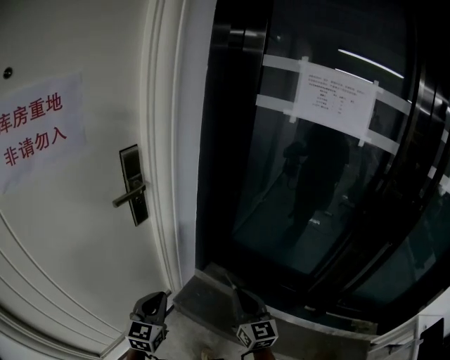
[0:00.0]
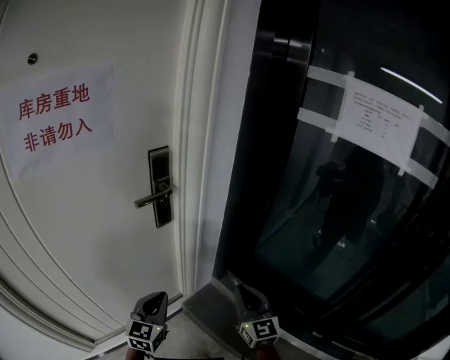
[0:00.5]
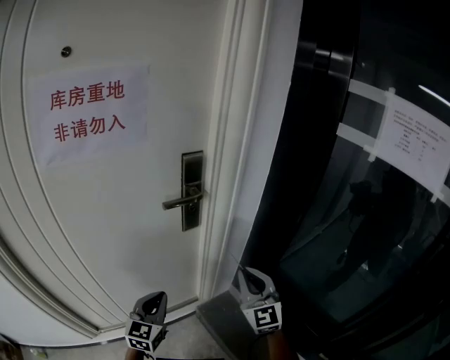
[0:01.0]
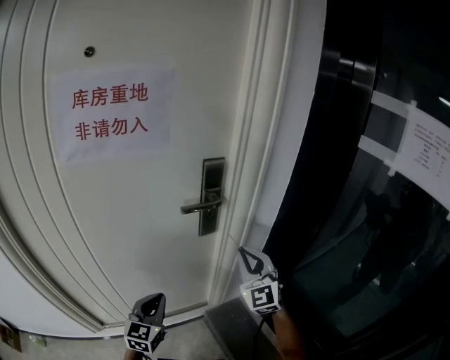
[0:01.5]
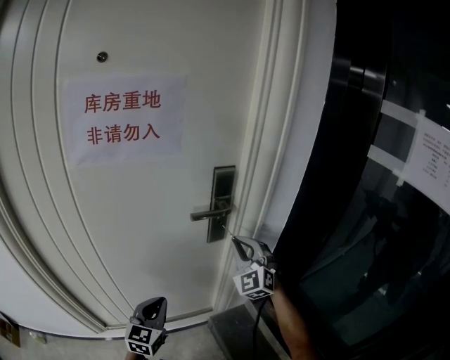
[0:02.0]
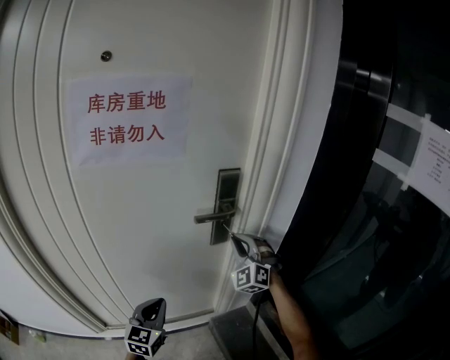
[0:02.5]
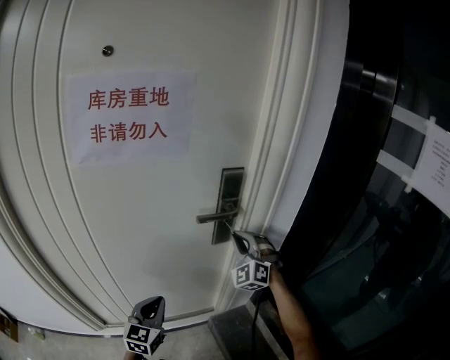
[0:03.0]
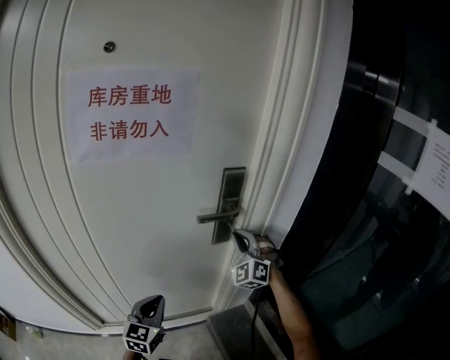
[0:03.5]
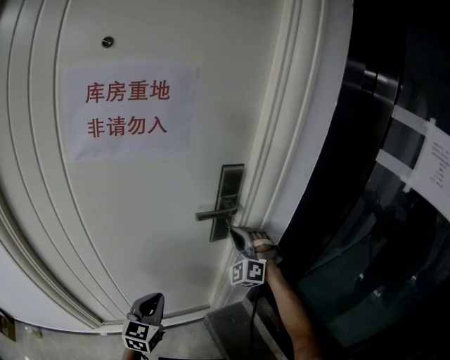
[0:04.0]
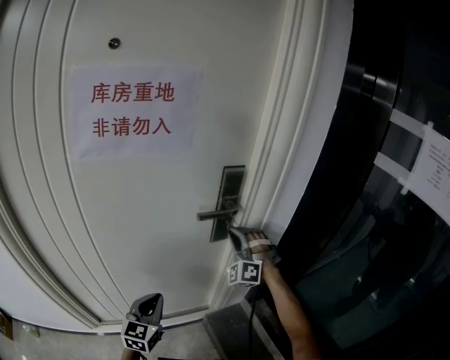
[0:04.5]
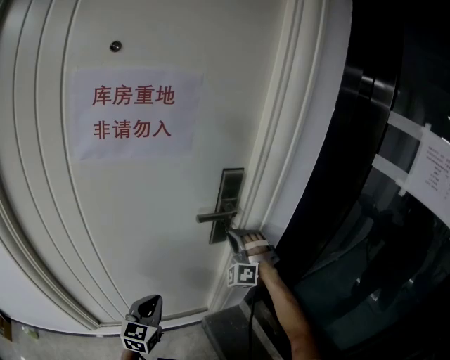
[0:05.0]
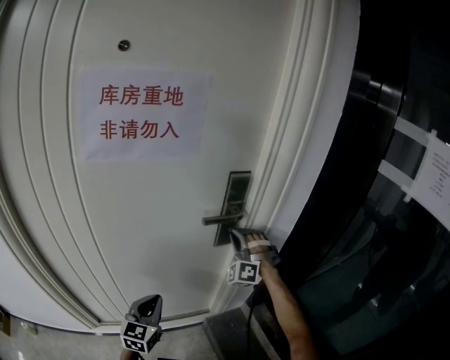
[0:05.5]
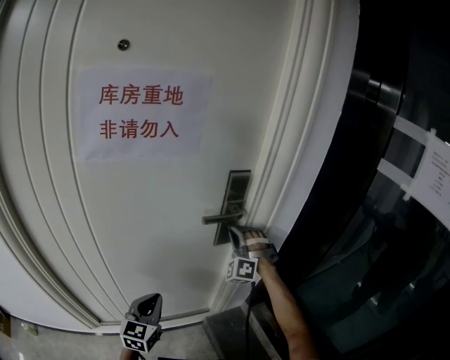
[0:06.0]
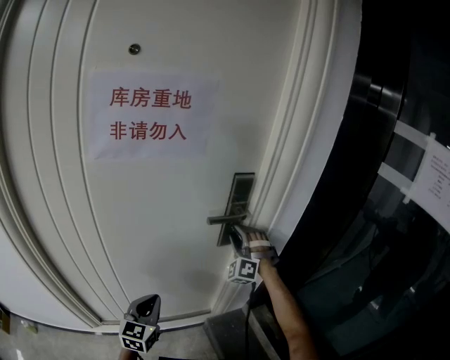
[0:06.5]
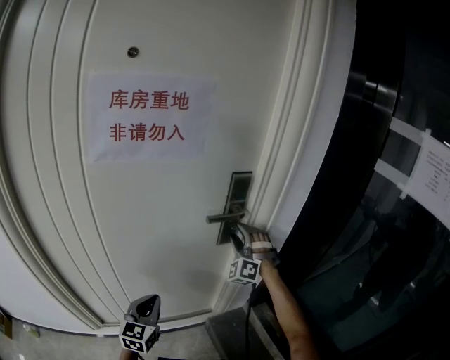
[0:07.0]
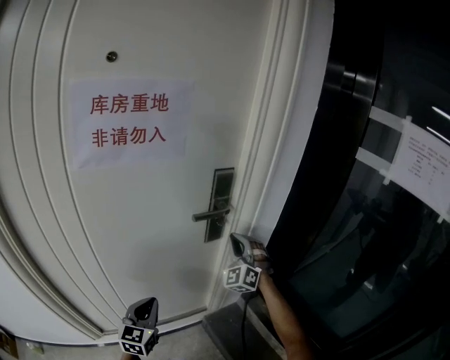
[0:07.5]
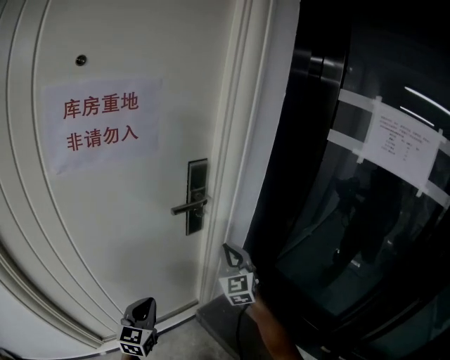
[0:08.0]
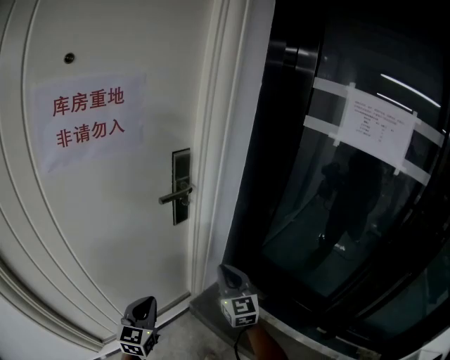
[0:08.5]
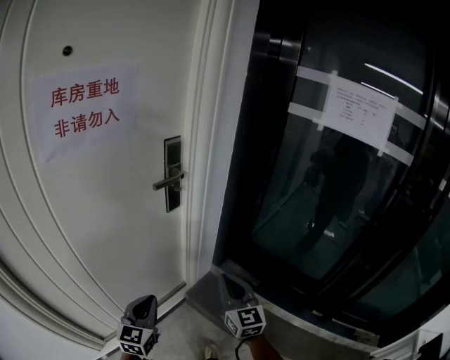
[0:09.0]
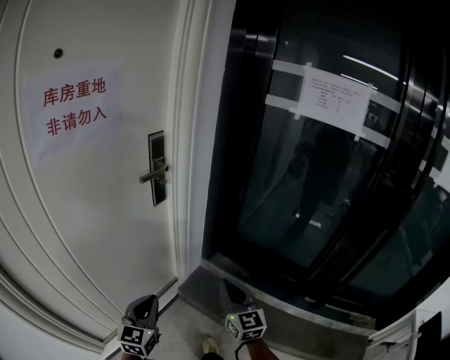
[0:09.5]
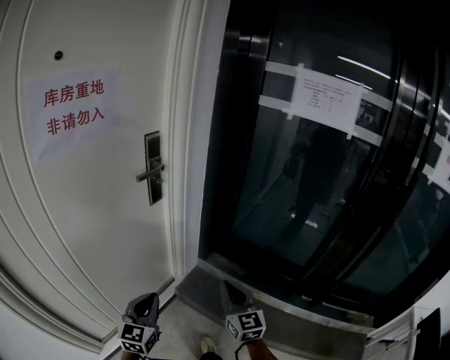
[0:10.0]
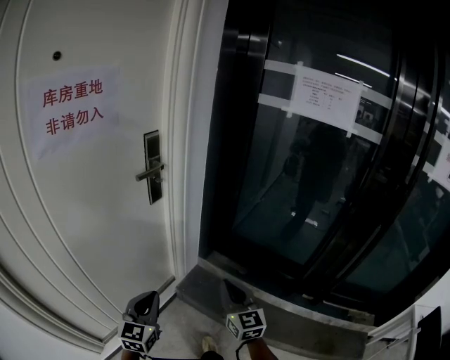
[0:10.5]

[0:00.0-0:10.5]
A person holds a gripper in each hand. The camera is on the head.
0:00.0 to 0:02.0: The right gripper ends up roughly 35 cm from where it was, and rotates approximately 60 degrees. Meanwhile the left gripper shifts by approximately 10 cm, and changes its angle by roughly 30 degrees.
0:02.0 to 0:04.0: The right gripper shifts approximately 5 cm forward, and changes its angle by some 30 degrees.
0:04.0 to 0:06.5: The right gripper opens up.
0:06.5 to 0:08.5: The right gripper shifts roughly 25 cm backward, rotates around the line of its fingers by approximately 80 degrees, clockwise from behind, and closes up. The left gripper ends up some 5 cm from where it was, and changes its angle by approximately 20 degrees.
0:08.5 to 0:10.5: The right gripper moves backward, roughly 20 cm. Meanwhile the left gripper is displaced backward by approximately 10 cm.

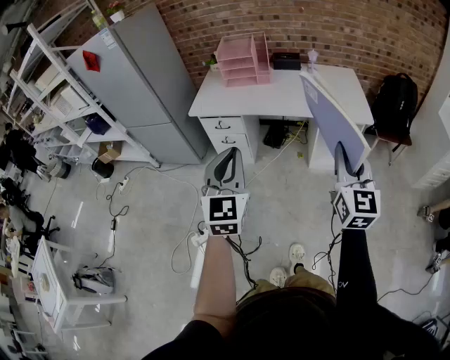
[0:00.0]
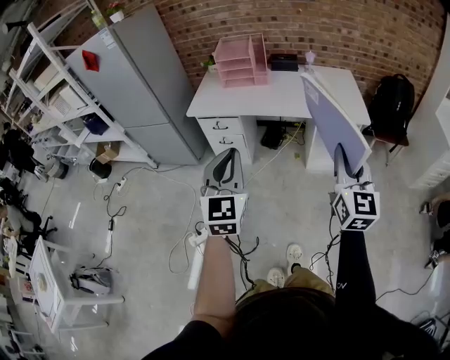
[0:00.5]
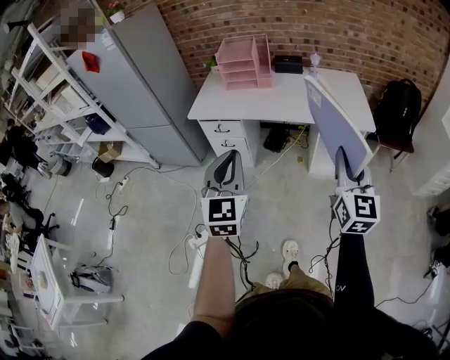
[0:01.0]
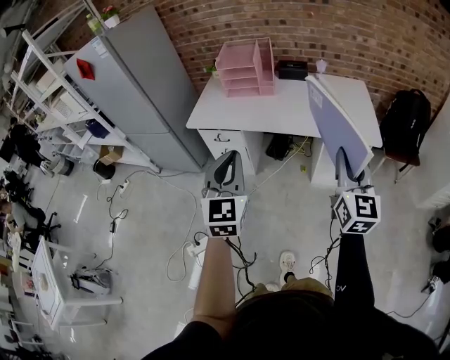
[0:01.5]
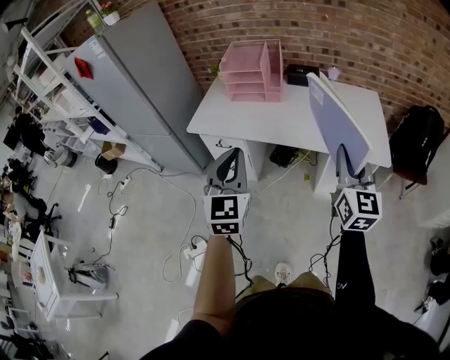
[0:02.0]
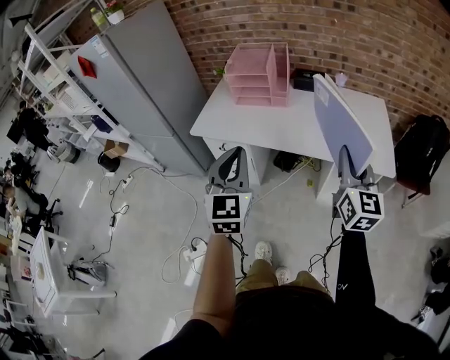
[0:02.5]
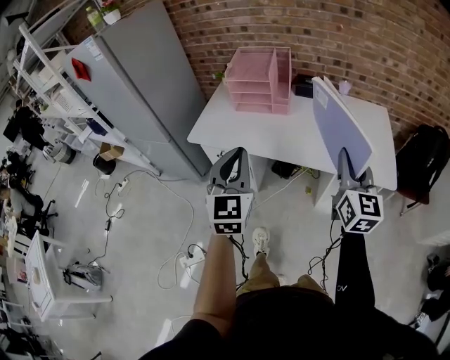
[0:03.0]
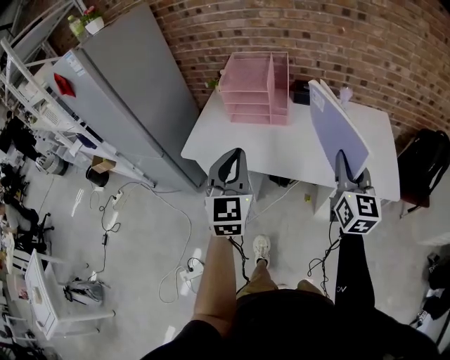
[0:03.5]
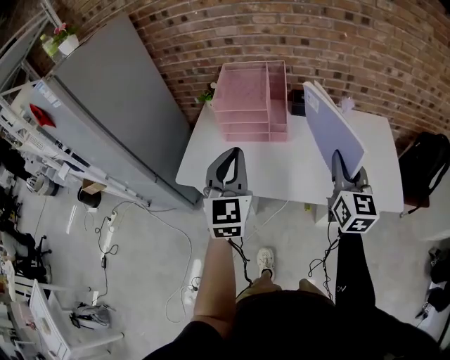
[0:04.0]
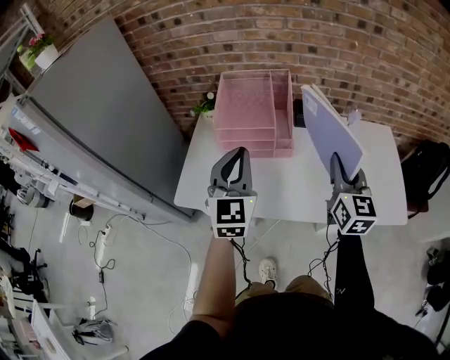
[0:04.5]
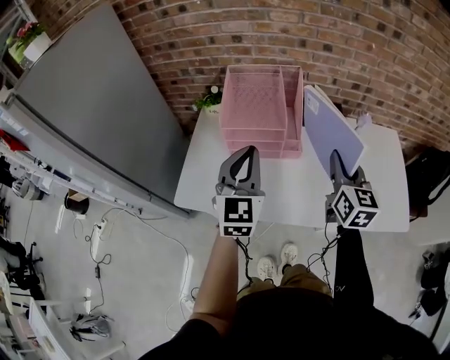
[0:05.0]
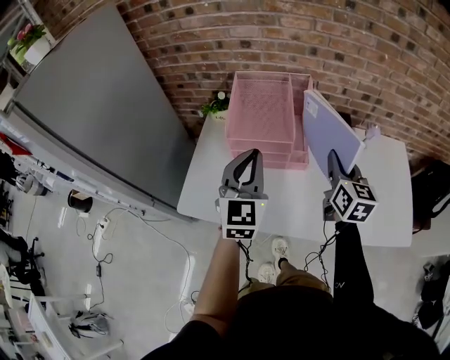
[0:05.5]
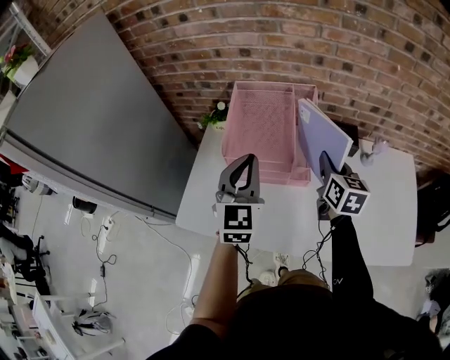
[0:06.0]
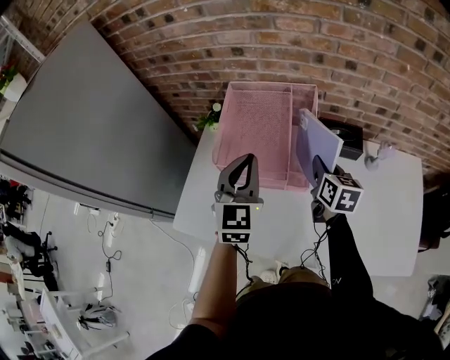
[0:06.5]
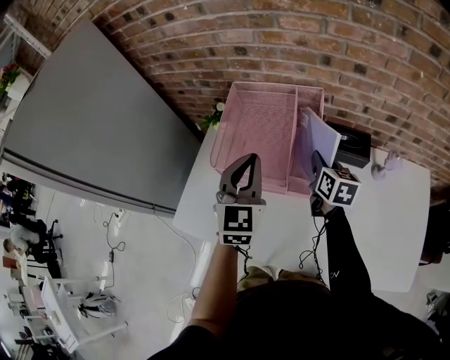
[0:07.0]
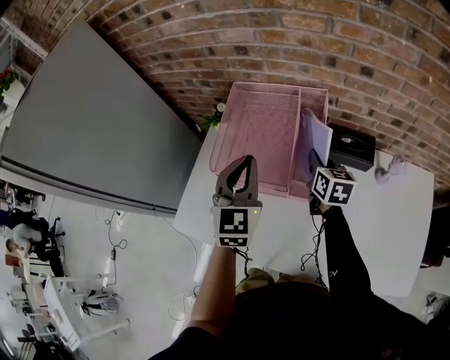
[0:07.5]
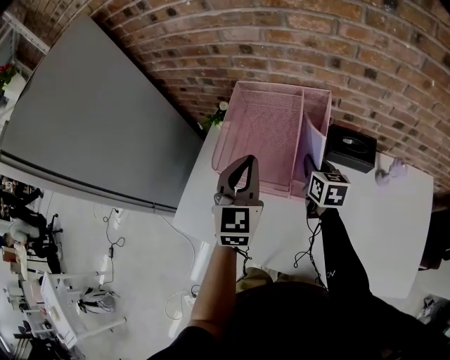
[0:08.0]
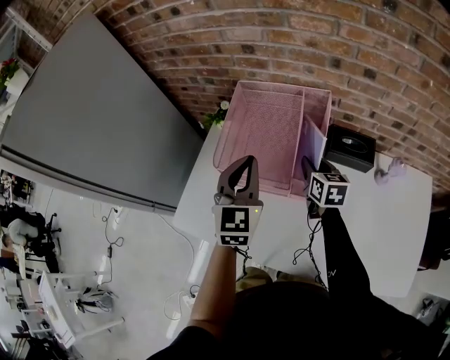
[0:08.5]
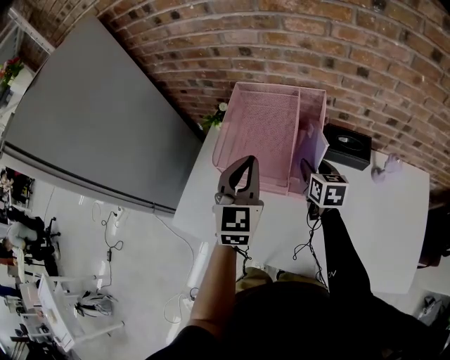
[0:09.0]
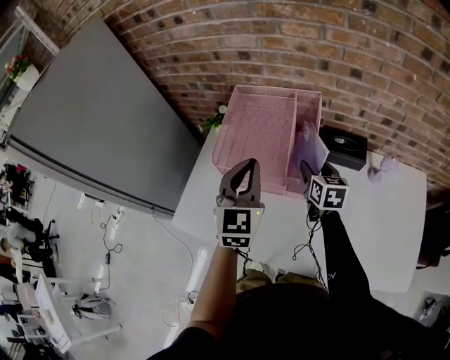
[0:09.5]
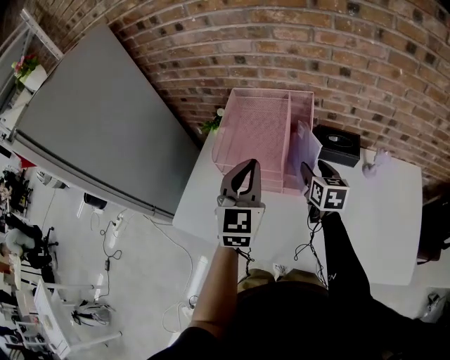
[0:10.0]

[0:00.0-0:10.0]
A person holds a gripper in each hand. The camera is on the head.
0:00.0 to 0:02.0: The grippers both shift forward by some 25 cm.
0:02.0 to 0:04.0: The grippers both shift forward by some 30 cm.
0:04.0 to 0:06.0: The grippers both shift forward by about 30 cm. The right gripper rotates approximately 20 degrees.
0:06.0 to 0:08.0: The left gripper goes about 10 cm forward; the right gripper goes approximately 15 cm downward and forward.
0:08.0 to 0:10.0: Both grippers travel together backward, roughly 5 cm. The right gripper opens.

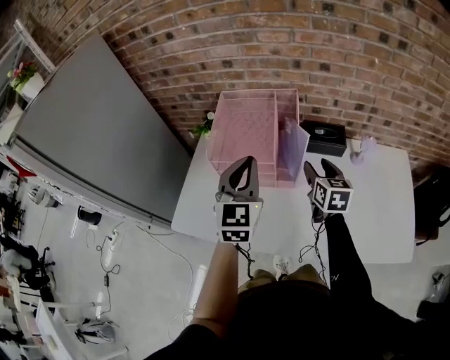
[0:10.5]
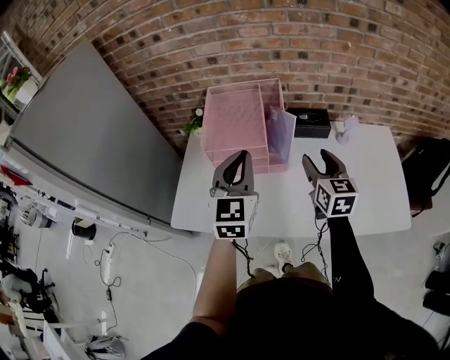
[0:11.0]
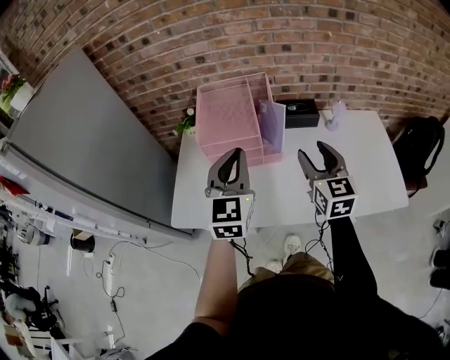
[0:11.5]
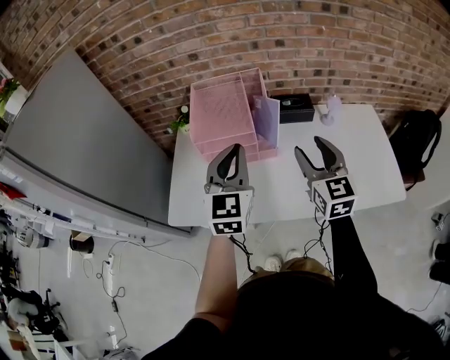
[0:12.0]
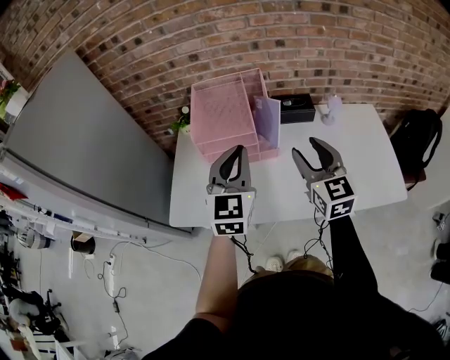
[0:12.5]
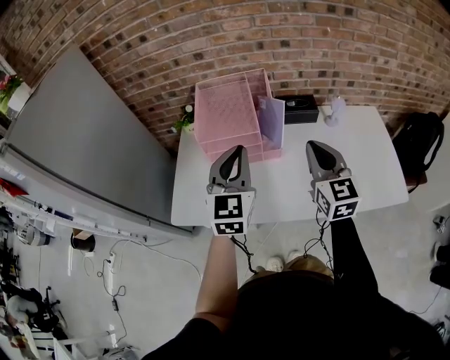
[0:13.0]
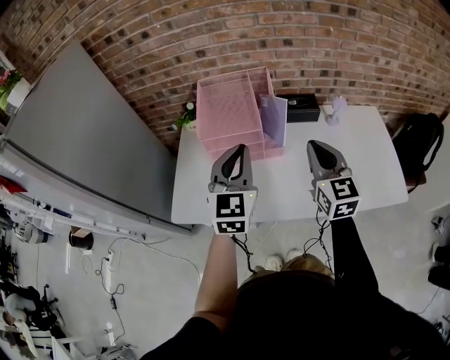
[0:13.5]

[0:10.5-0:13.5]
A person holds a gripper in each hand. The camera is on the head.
0:10.5 to 0:12.0: The right gripper heads backward and upward, covering about 20 cm, and swivels approximately 20 degrees; the left gripper is displaced backward by roughly 10 cm.
0:12.0 to 0:13.5: The right gripper closes up.

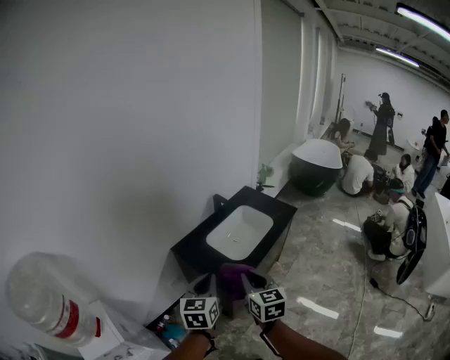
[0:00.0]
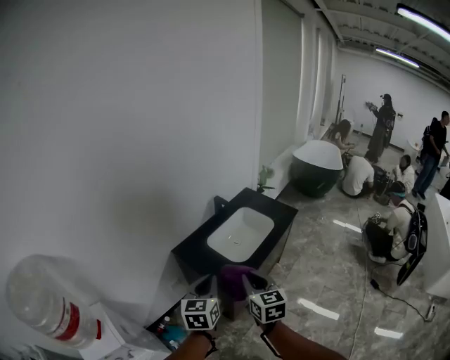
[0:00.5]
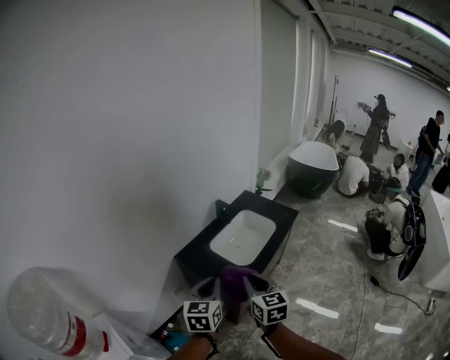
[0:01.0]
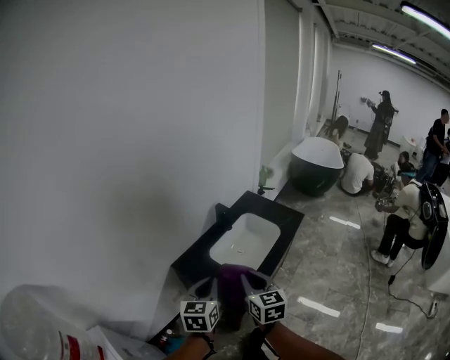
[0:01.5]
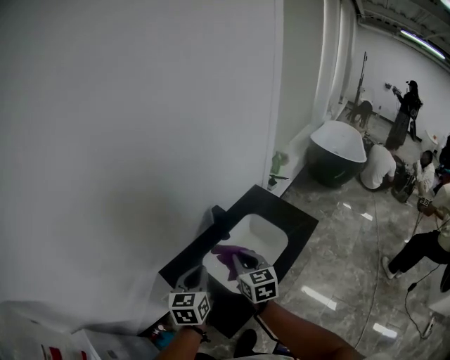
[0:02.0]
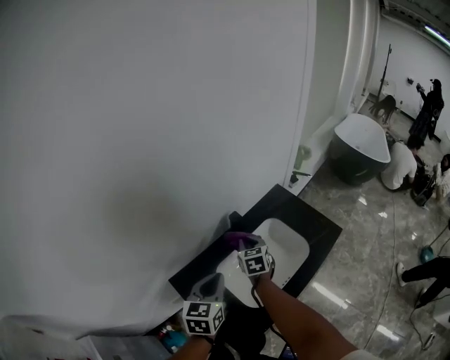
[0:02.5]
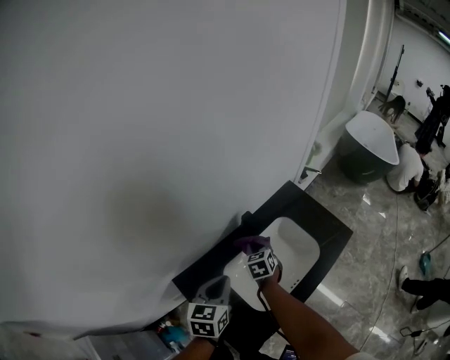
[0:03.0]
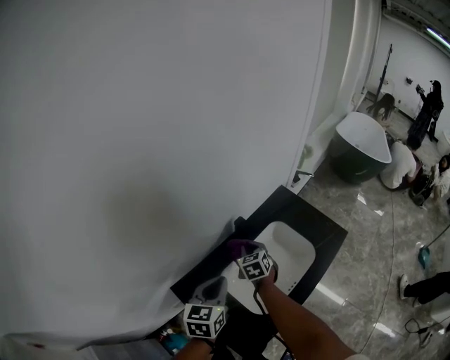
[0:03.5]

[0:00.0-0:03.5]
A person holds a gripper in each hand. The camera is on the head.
0:00.0 to 0:02.0: Both grippers move forward, about 35 cm.
0:02.0 to 0:03.5: The left gripper shifts approximately 15 cm forward and downward. Meanwhile the right gripper shifts roughly 30 cm forward and downward, and turns by roughly 30 degrees.
